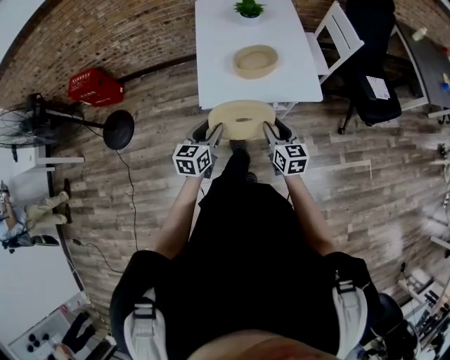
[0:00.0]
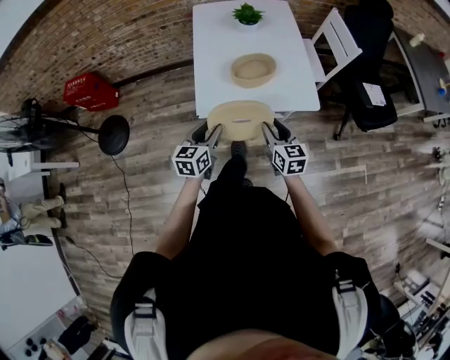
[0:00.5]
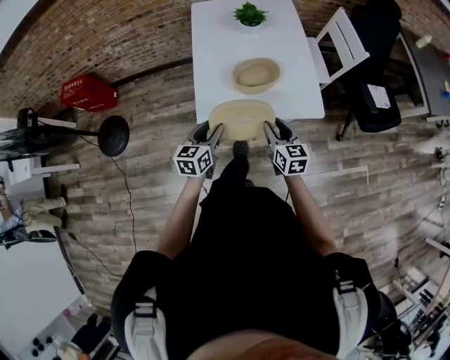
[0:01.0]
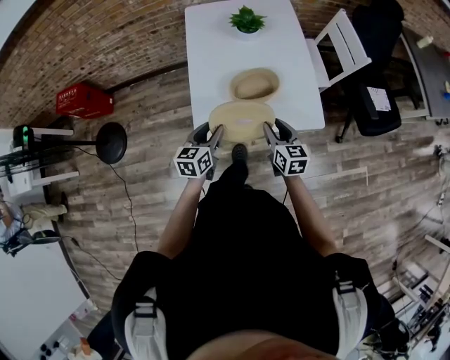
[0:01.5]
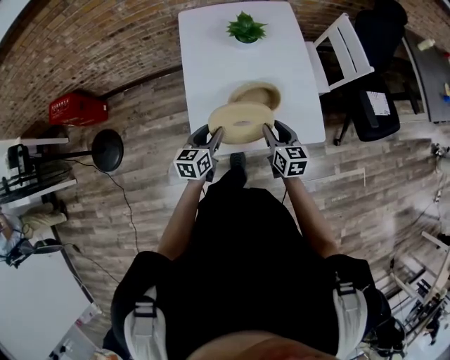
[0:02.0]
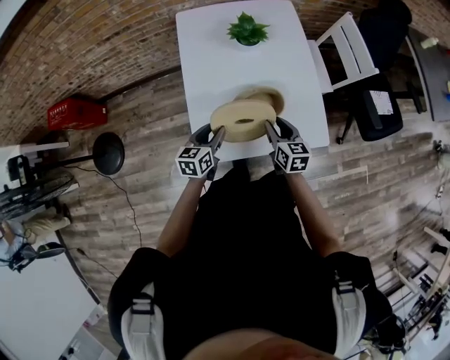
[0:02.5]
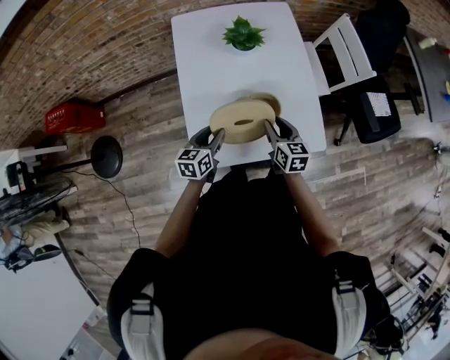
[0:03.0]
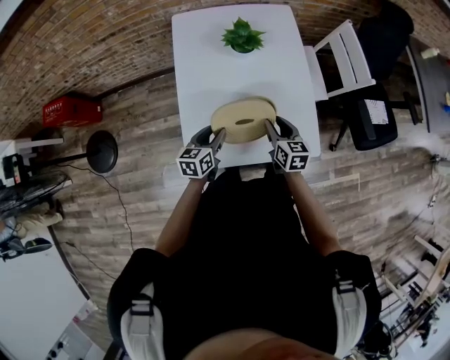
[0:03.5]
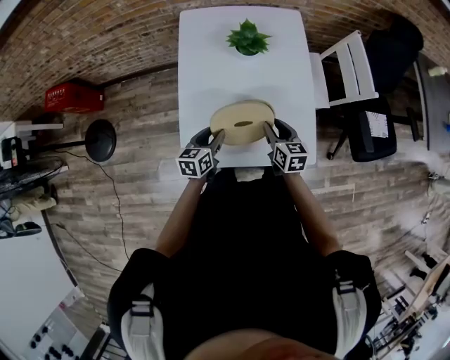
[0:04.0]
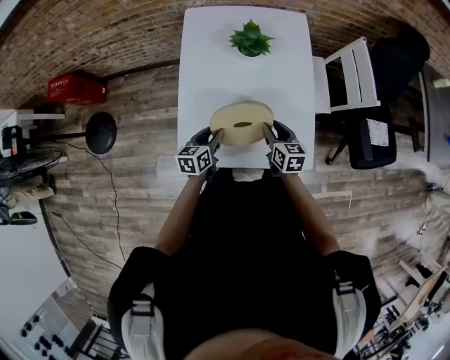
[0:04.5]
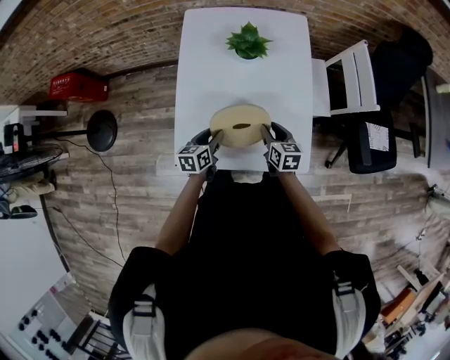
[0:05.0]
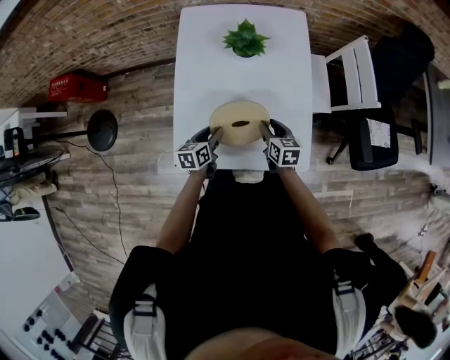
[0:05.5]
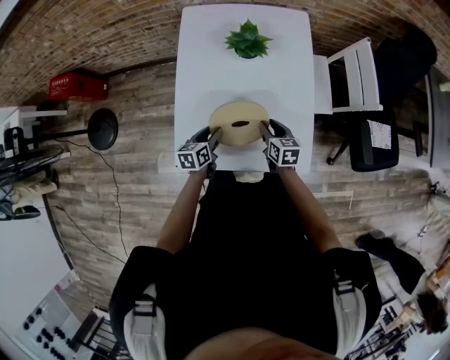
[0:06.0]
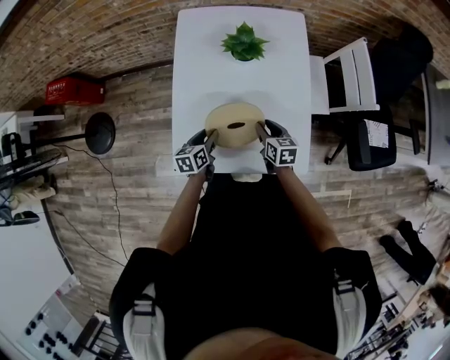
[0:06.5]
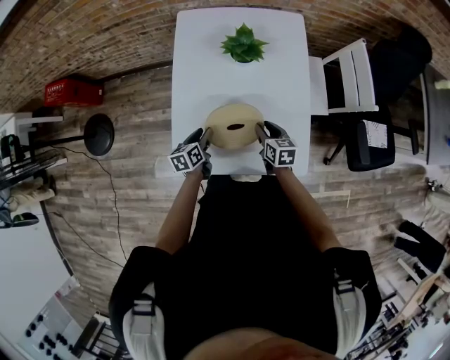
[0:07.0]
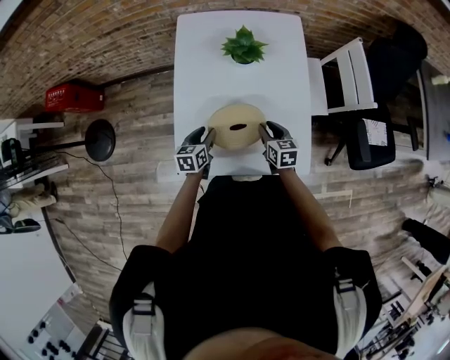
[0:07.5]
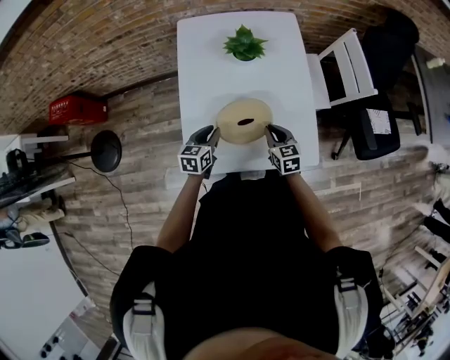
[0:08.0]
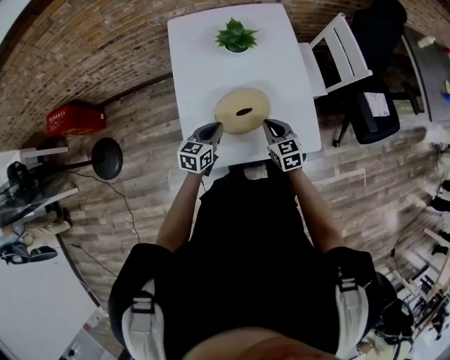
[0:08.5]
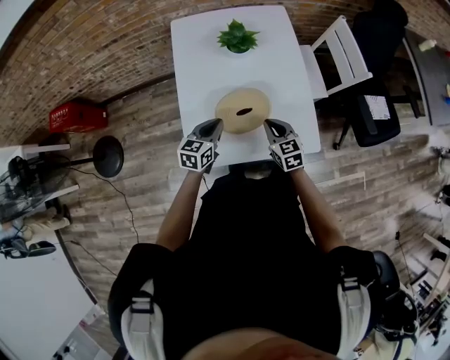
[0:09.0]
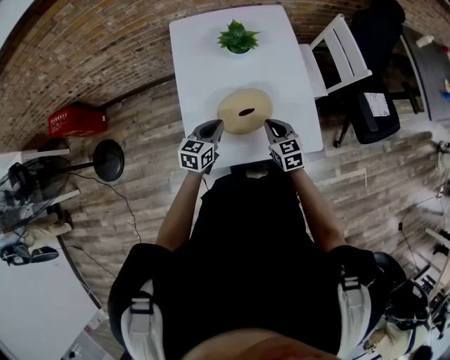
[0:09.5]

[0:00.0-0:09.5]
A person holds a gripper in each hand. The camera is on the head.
0:00.0 to 0:02.0: The grippers both shift forward by about 25 cm.
0:02.0 to 0:04.0: Both grippers travel together forward, about 10 cm.
0:04.0 to 0:05.5: The right gripper ends up about 5 cm from where it was. The left gripper moves about 5 cm.
0:05.5 to 0:07.5: There are only small adjustments of the grippers.
0:07.5 to 0:09.5: The left gripper goes some 10 cm upward, turns by roughly 30 degrees, and closes its fingers. The right gripper moves backward and upward, approximately 10 cm, and closes.

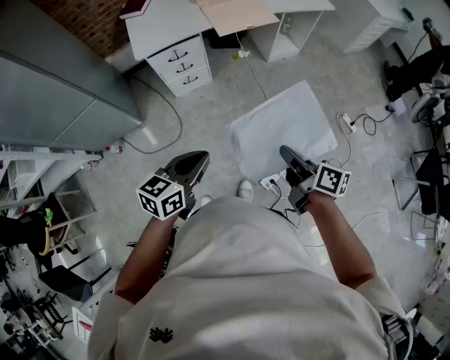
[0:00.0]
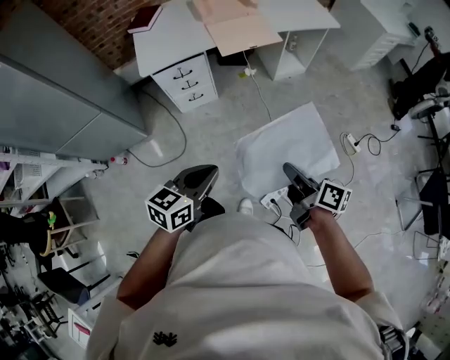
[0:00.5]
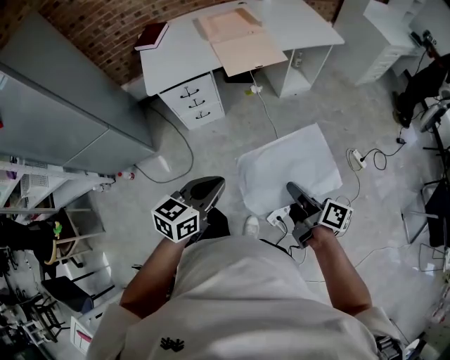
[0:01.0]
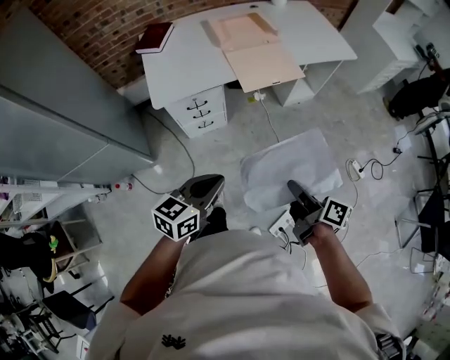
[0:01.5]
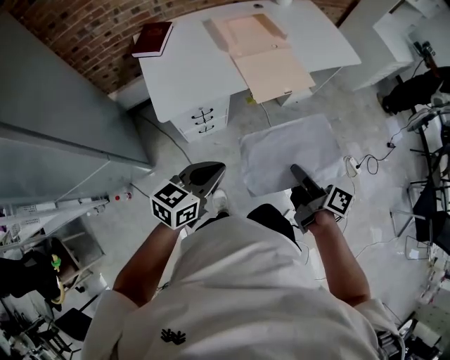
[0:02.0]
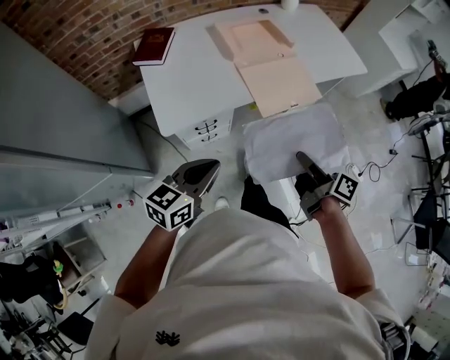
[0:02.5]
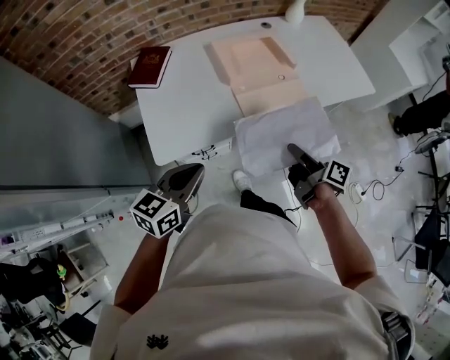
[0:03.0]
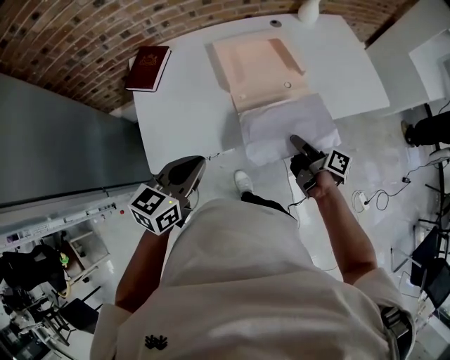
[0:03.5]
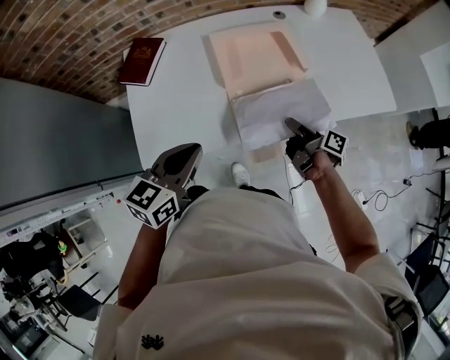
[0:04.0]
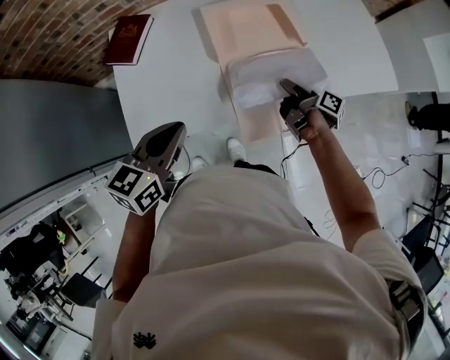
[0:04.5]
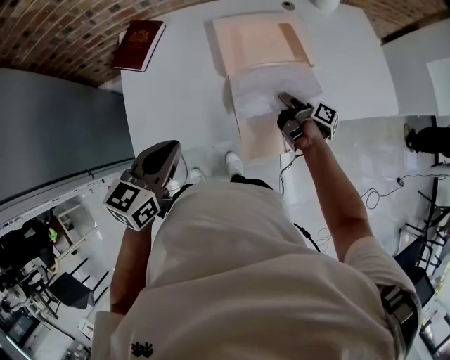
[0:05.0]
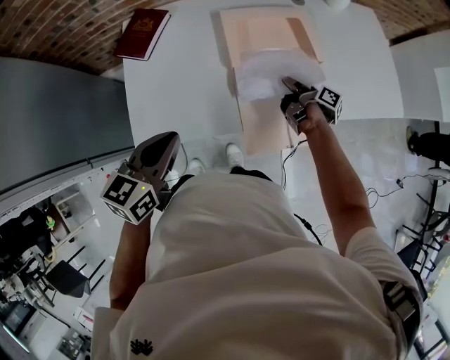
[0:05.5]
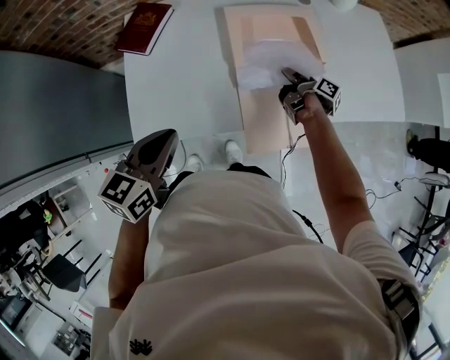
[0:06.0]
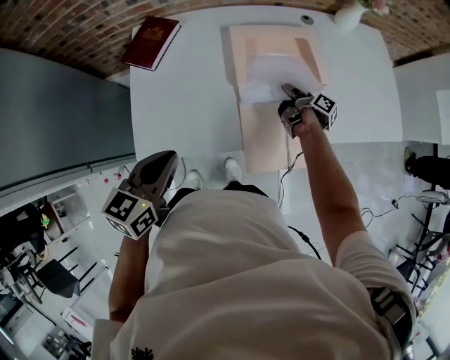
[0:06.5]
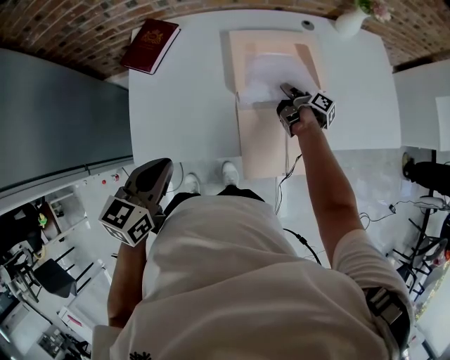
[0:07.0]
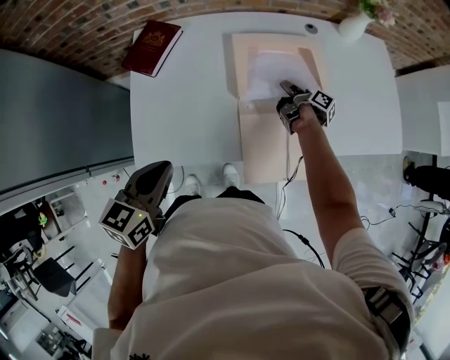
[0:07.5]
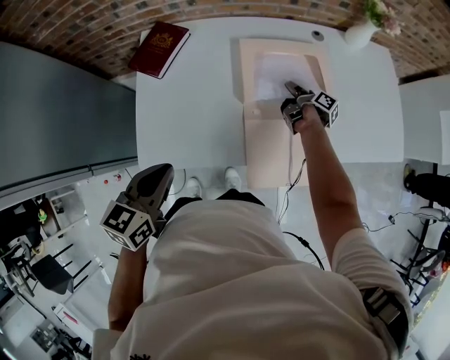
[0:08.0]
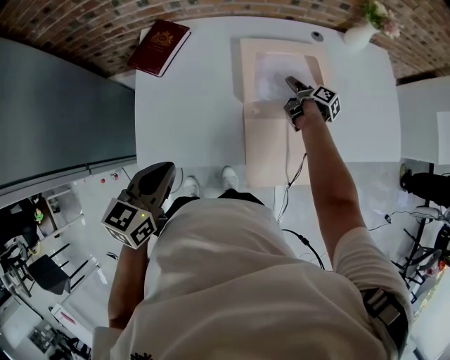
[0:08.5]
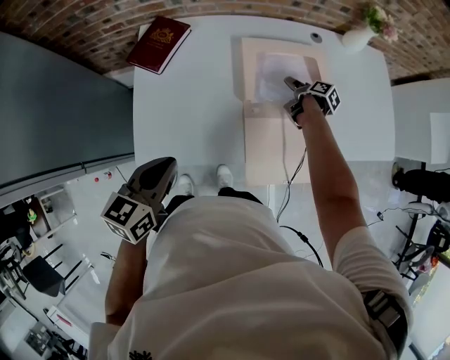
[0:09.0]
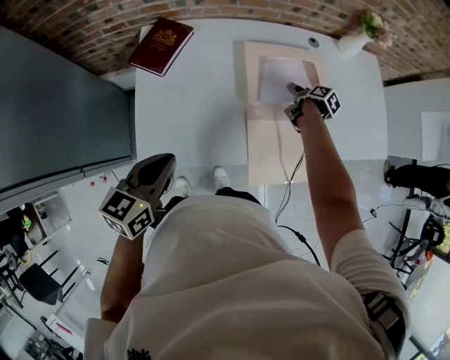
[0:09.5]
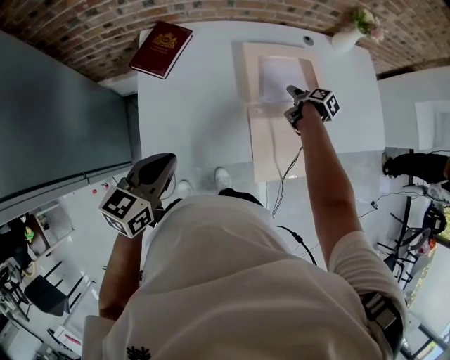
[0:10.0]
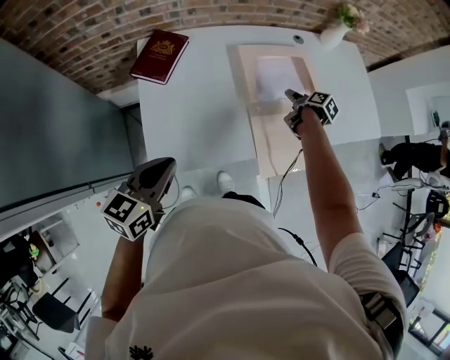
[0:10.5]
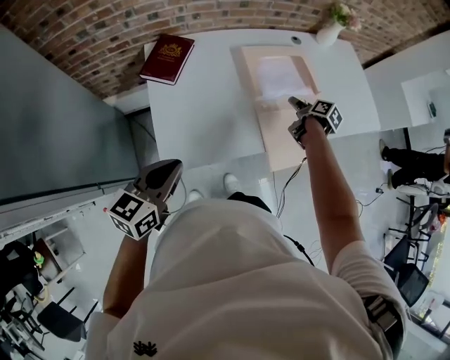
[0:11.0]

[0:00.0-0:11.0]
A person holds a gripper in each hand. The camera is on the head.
0:00.0 to 0:02.0: The left gripper changes place by roughly 35 cm.
0:02.0 to 0:03.5: The left gripper changes place by approximately 30 cm.
0:03.5 to 0:05.5: The left gripper moves approximately 10 cm.
0:09.0 to 0:11.0: The left gripper changes place by roughly 15 cm.

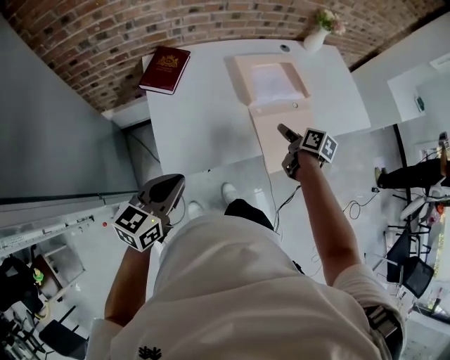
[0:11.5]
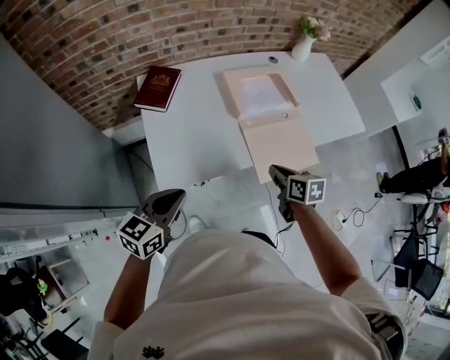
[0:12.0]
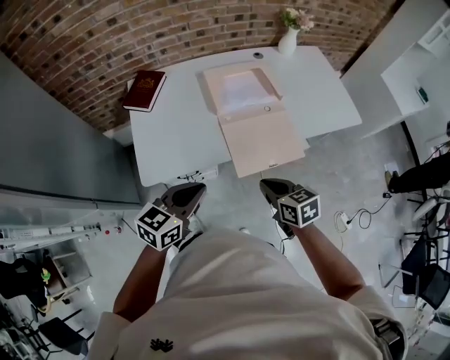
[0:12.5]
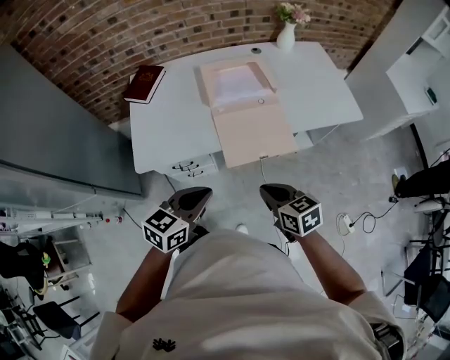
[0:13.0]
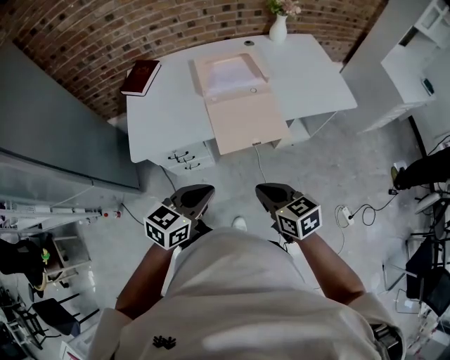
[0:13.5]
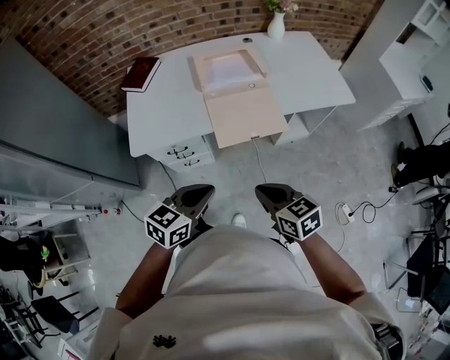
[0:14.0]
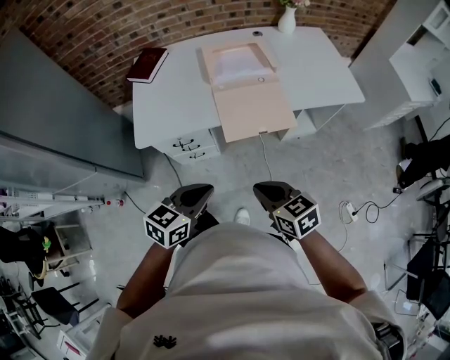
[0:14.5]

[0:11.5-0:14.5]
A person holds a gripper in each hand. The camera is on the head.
0:11.5 to 0:13.0: The left gripper changes place by about 35 cm.
0:13.0 to 0:14.5: The left gripper moves roughly 10 cm.

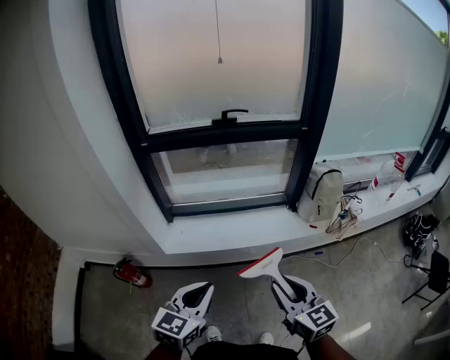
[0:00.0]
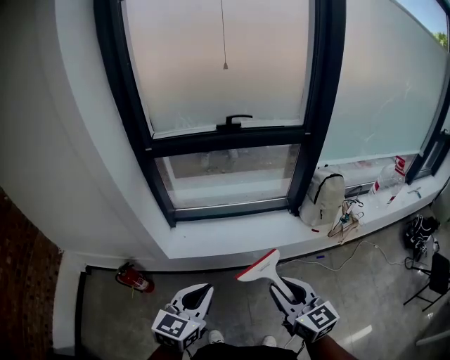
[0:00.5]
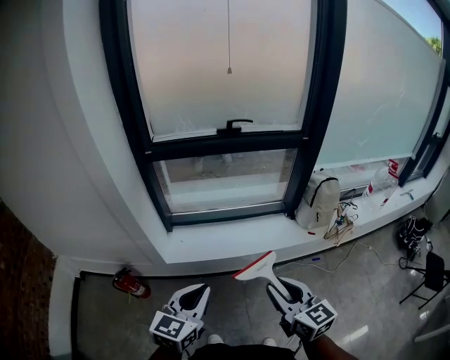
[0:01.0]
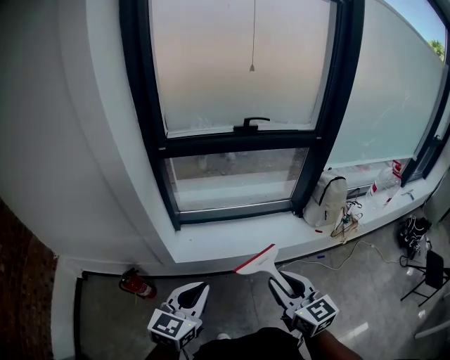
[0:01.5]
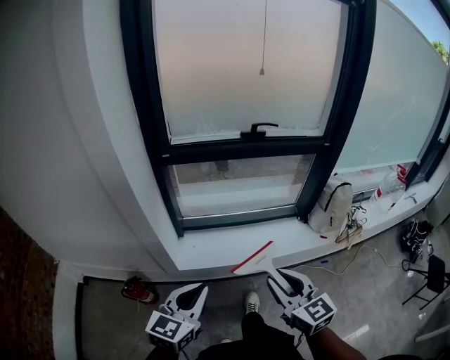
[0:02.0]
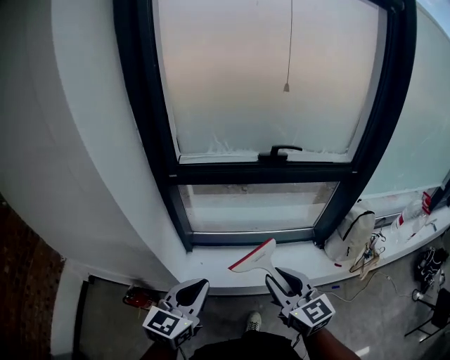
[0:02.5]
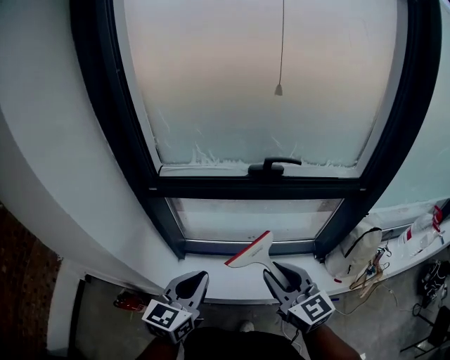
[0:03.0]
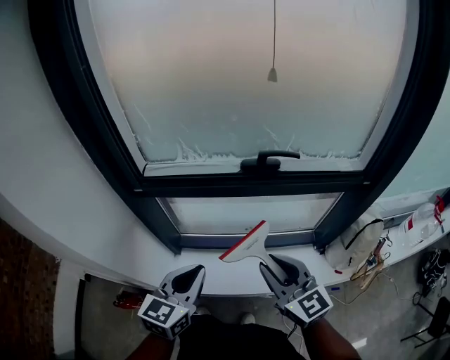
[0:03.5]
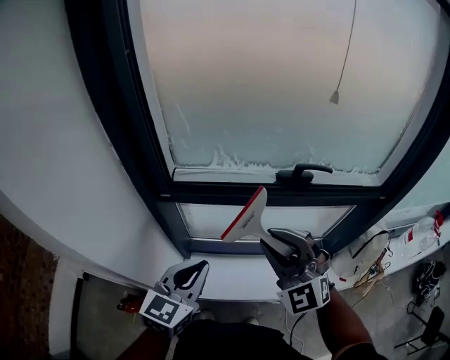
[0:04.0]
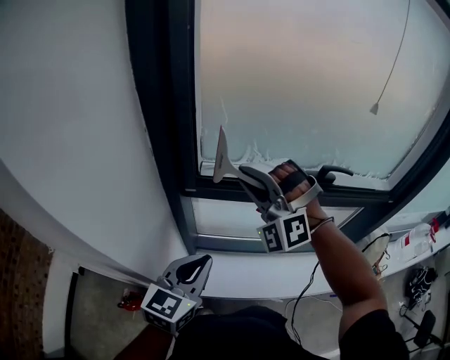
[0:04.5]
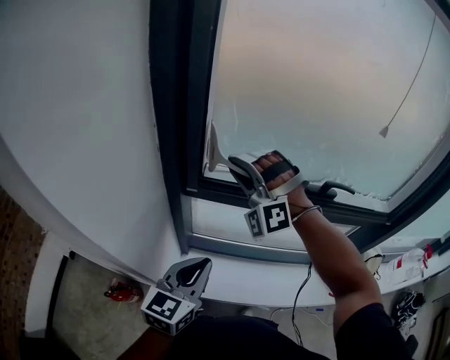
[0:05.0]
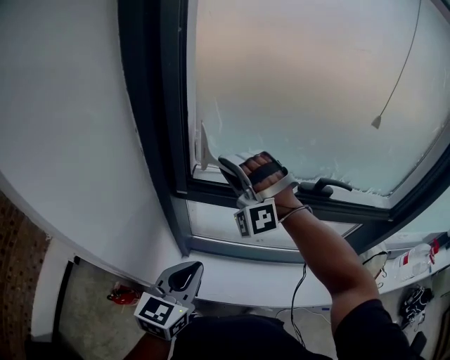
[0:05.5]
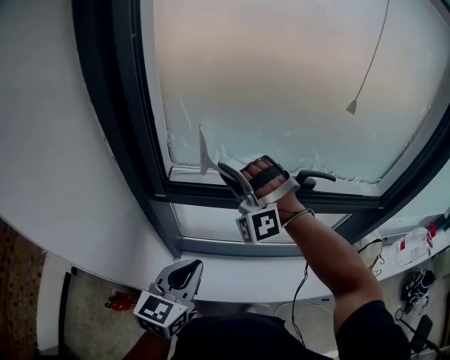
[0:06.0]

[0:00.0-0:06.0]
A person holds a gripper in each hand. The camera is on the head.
0:00.0 to 0:02.0: The left gripper changes place by about 20 cm.
0:02.0 to 0:04.0: The left gripper changes place by approximately 35 cm.
